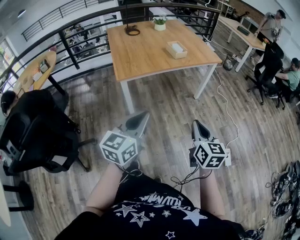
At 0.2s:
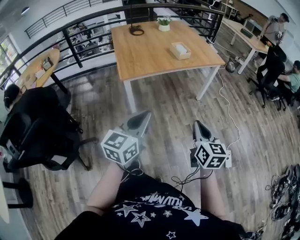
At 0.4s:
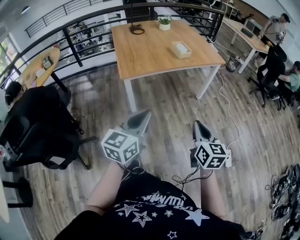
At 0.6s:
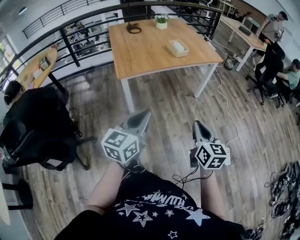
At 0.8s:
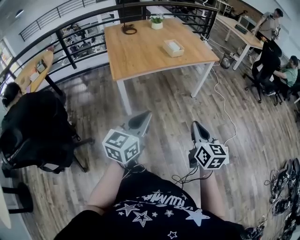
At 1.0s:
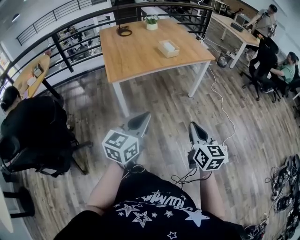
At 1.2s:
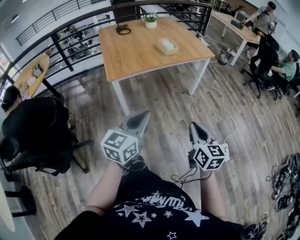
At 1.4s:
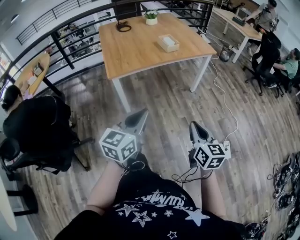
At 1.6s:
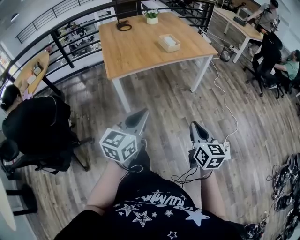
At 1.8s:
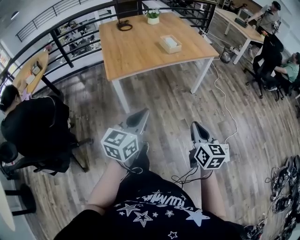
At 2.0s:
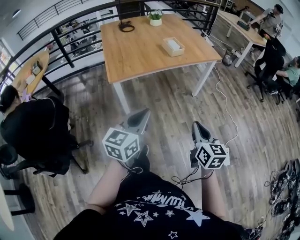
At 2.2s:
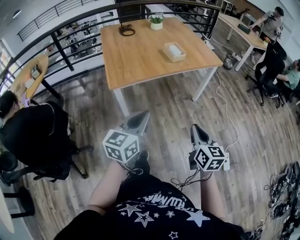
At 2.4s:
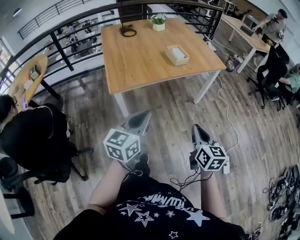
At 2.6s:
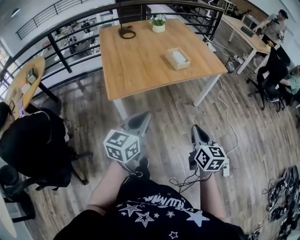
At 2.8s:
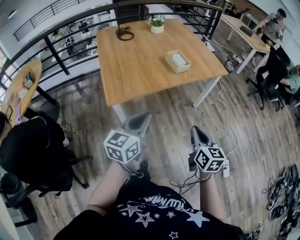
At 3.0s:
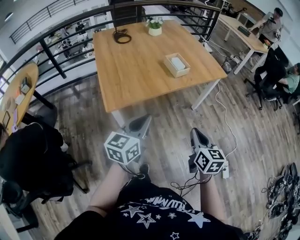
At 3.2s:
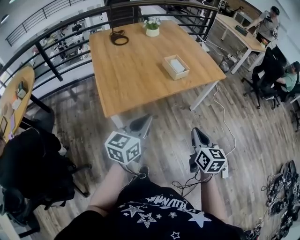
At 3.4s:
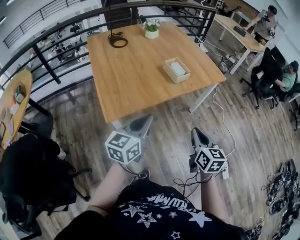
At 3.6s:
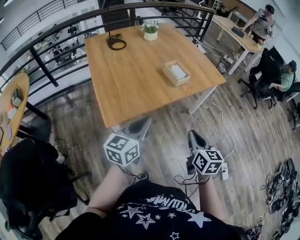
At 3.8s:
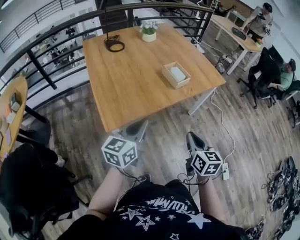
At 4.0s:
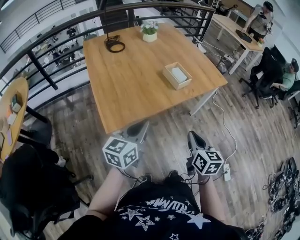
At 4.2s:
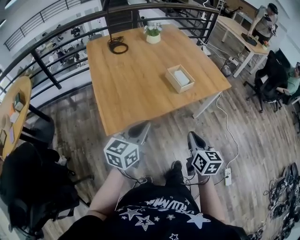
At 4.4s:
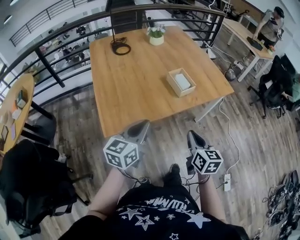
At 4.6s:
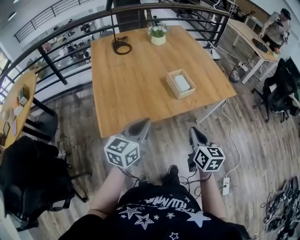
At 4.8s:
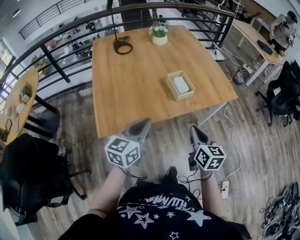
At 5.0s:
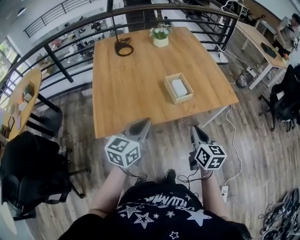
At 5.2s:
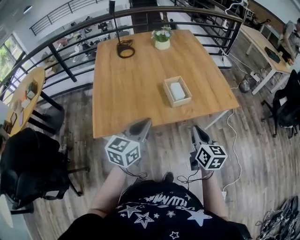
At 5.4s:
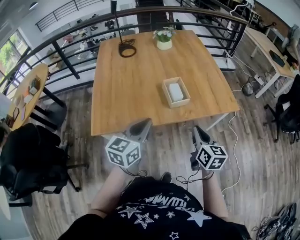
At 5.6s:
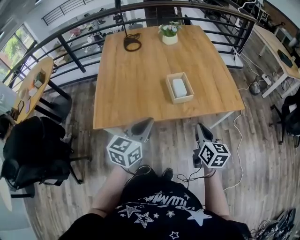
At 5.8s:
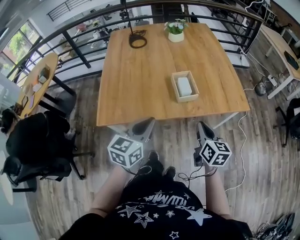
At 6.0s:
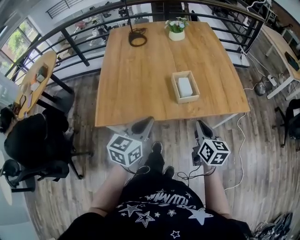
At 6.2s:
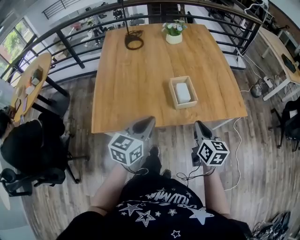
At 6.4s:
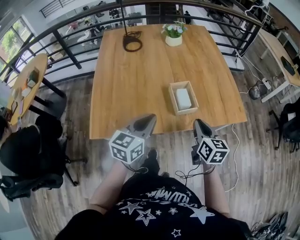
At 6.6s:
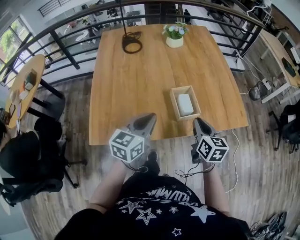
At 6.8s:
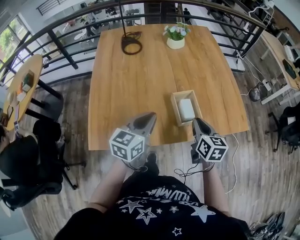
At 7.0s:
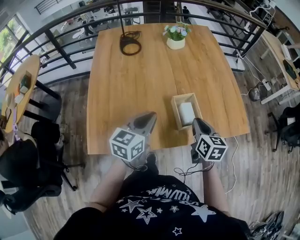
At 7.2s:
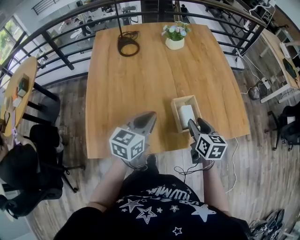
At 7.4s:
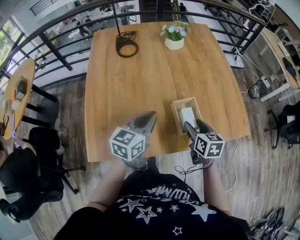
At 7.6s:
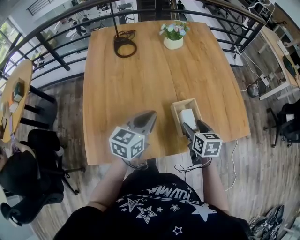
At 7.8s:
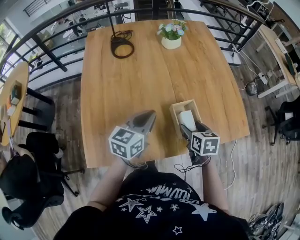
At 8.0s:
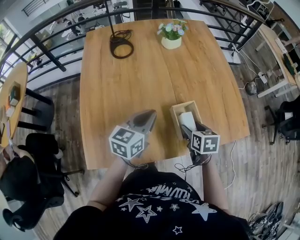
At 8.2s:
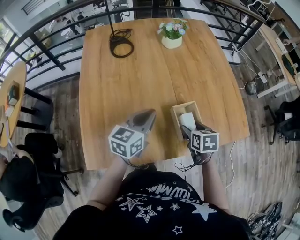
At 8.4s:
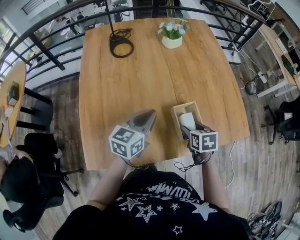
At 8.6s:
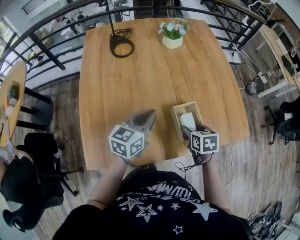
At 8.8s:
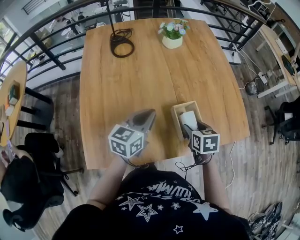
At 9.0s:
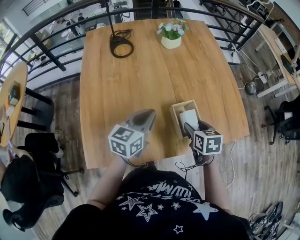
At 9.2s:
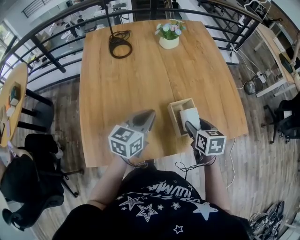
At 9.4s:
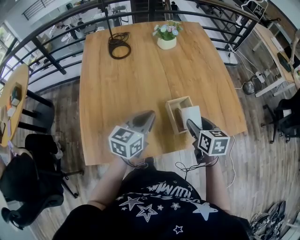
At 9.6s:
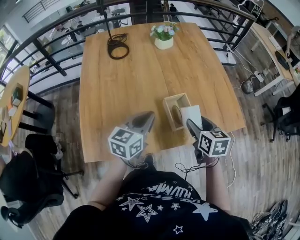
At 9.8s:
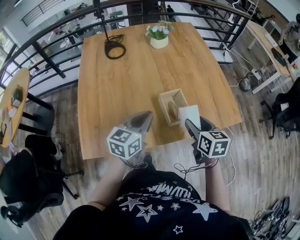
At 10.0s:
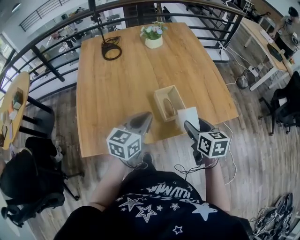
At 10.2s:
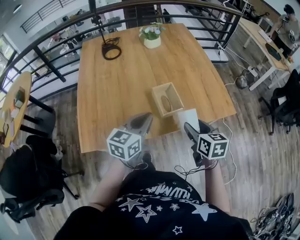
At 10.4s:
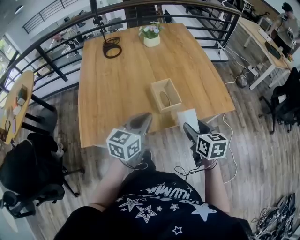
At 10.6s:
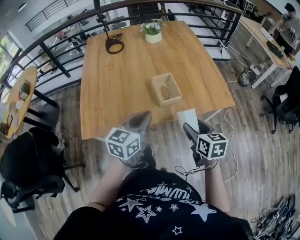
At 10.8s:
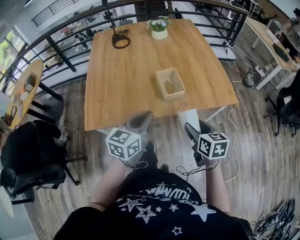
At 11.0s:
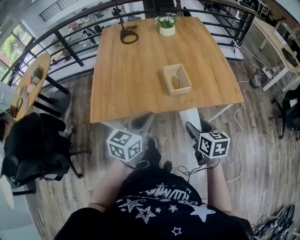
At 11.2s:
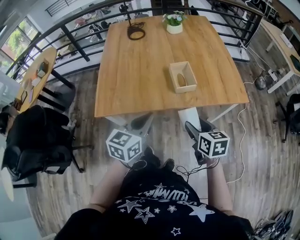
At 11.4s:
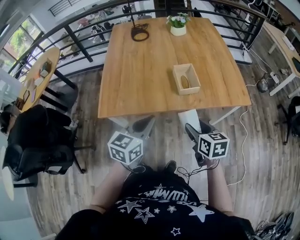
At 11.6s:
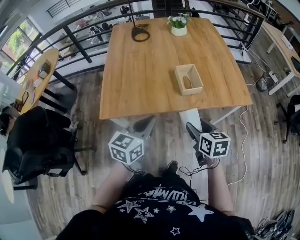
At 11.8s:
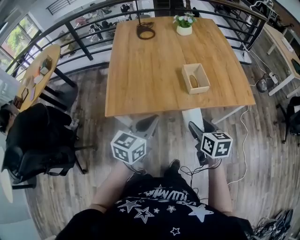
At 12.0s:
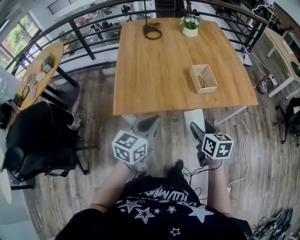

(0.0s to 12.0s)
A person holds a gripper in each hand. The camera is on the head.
0.0s - 1.6s: The left gripper ends up roughly 5 cm from where it was. The right gripper changes place by approximately 5 cm.
1.6s - 3.0s: Both grippers travel together forward, about 25 cm.
3.0s - 4.4s: The grippers both shift forward by approximately 15 cm.
4.4s - 6.0s: The left gripper is displaced to the right and forward by some 15 cm. The right gripper moves forward and to the right, some 20 cm.
6.0s - 7.6s: The grippers both shift forward by approximately 25 cm. The right gripper rotates about 20 degrees, and opens up.
7.6s - 9.0s: The grippers move only a little.
9.0s - 10.4s: The right gripper moves backward, to the right and upward, some 25 cm, while the left gripper goes roughly 20 cm backward and to the right.
10.4s - 12.0s: The right gripper moves to the left and backward, some 20 cm. The left gripper goes about 25 cm backward and to the left.

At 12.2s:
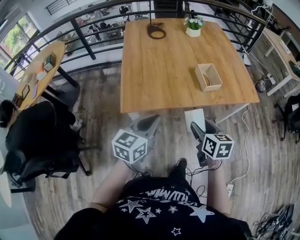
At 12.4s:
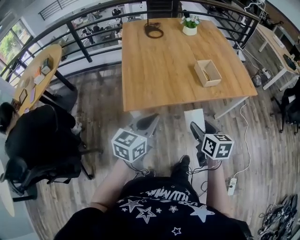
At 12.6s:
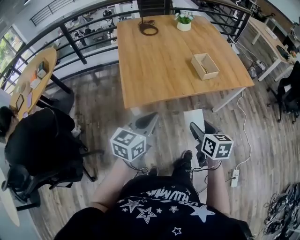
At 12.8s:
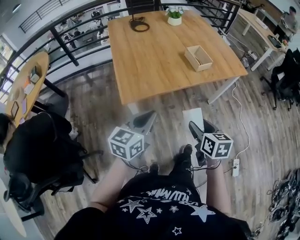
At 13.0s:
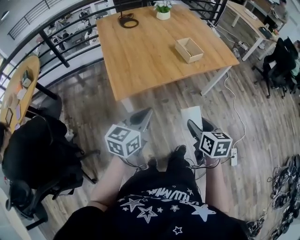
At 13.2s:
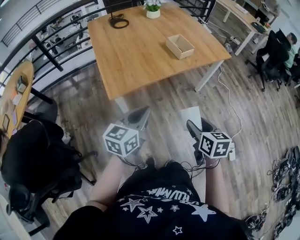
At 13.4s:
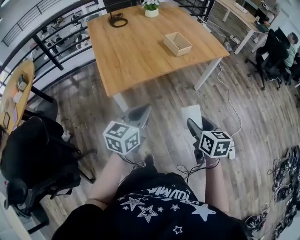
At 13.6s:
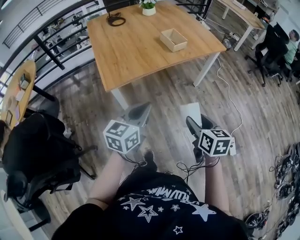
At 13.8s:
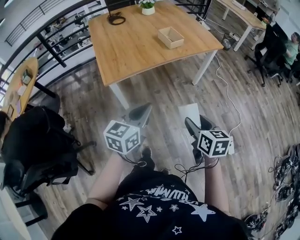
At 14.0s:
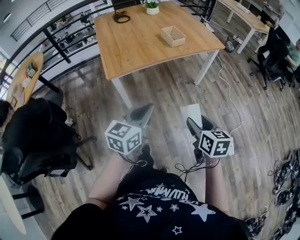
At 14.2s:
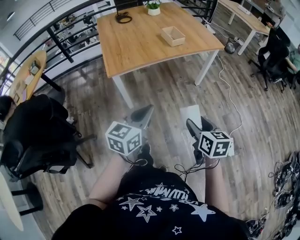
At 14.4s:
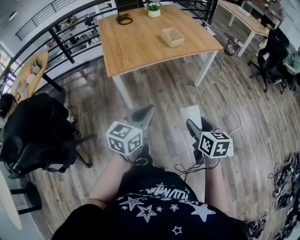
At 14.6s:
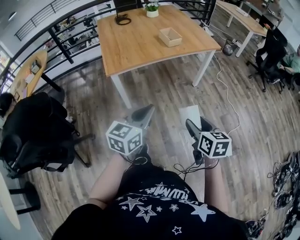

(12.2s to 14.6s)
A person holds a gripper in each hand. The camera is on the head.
12.2s - 13.4s: The right gripper travels backward by about 25 cm. Meanwhile the left gripper heads backward, covering approximately 15 cm.
13.4s - 14.6s: The two grippers go approximately 20 cm backward and to the right.

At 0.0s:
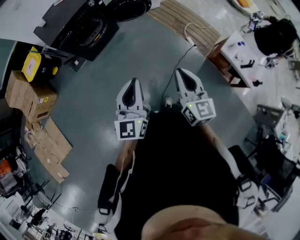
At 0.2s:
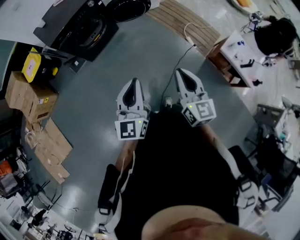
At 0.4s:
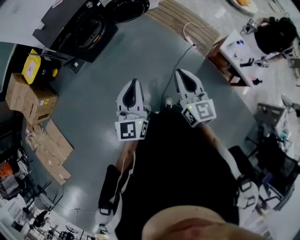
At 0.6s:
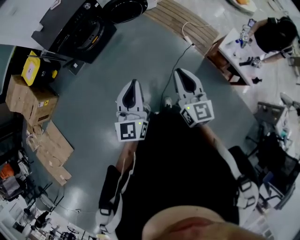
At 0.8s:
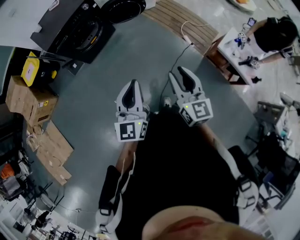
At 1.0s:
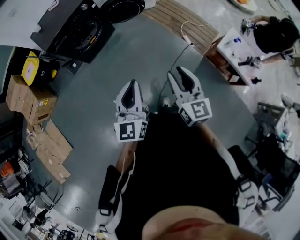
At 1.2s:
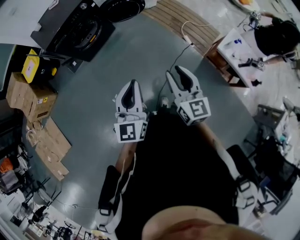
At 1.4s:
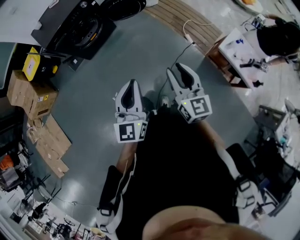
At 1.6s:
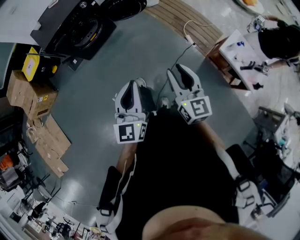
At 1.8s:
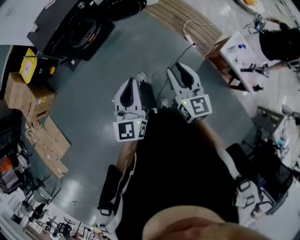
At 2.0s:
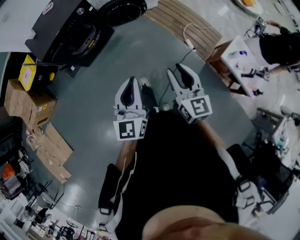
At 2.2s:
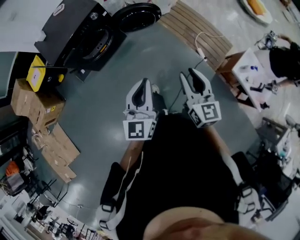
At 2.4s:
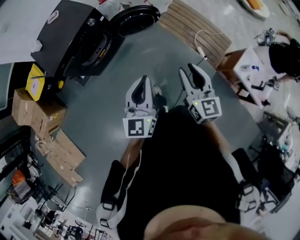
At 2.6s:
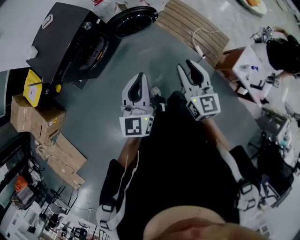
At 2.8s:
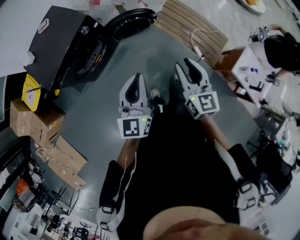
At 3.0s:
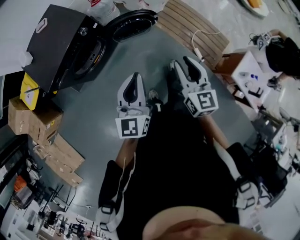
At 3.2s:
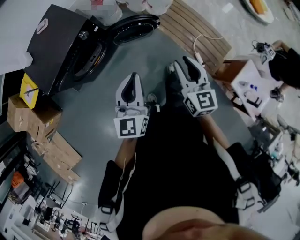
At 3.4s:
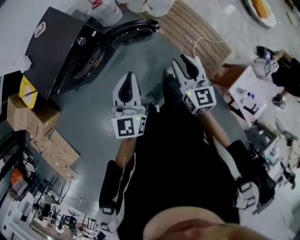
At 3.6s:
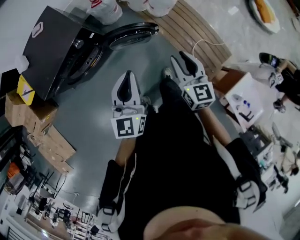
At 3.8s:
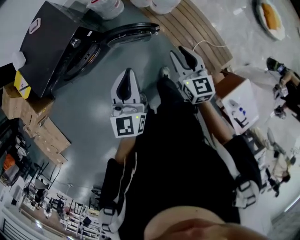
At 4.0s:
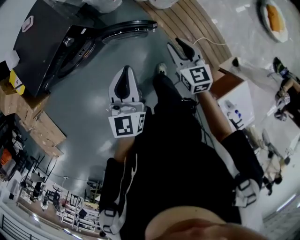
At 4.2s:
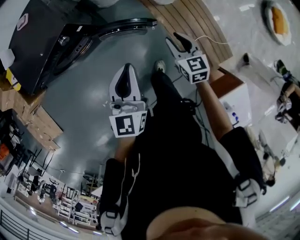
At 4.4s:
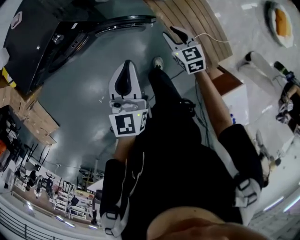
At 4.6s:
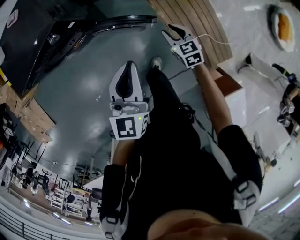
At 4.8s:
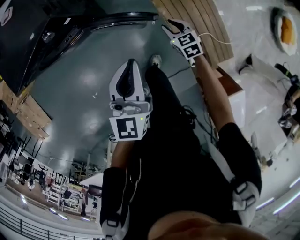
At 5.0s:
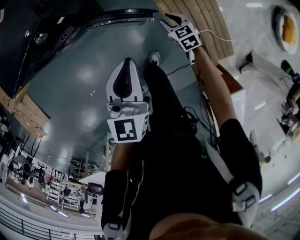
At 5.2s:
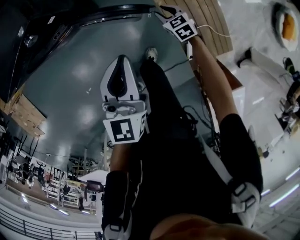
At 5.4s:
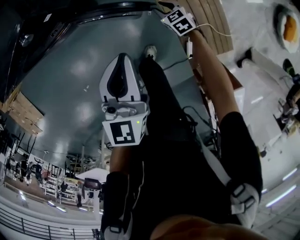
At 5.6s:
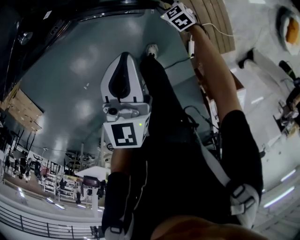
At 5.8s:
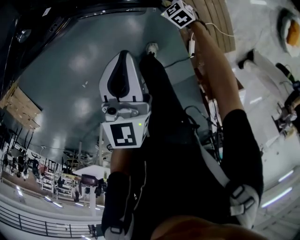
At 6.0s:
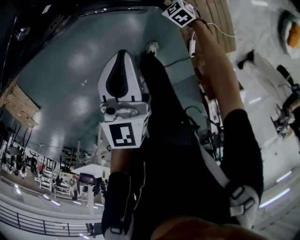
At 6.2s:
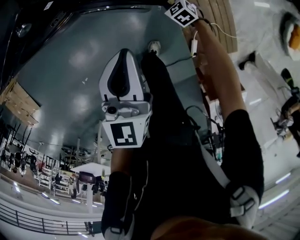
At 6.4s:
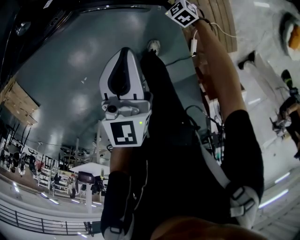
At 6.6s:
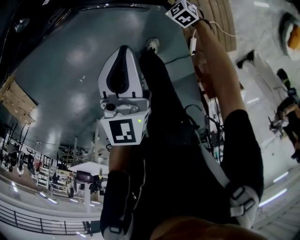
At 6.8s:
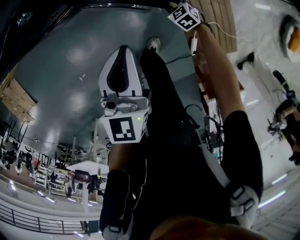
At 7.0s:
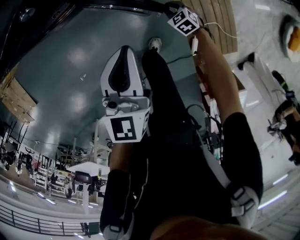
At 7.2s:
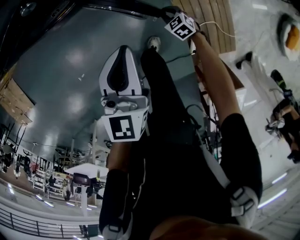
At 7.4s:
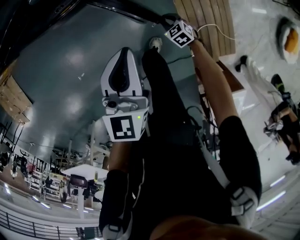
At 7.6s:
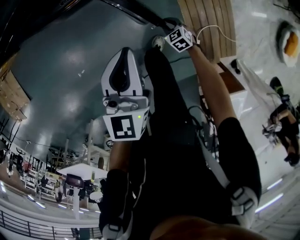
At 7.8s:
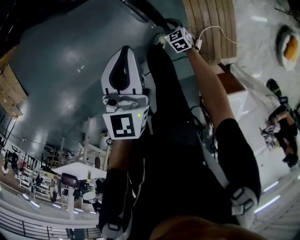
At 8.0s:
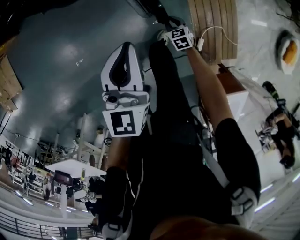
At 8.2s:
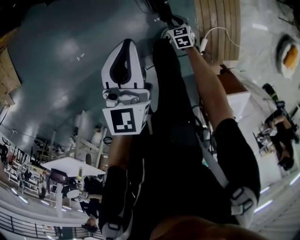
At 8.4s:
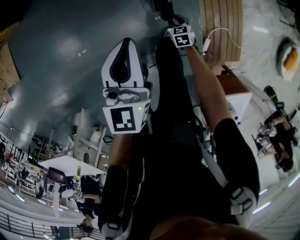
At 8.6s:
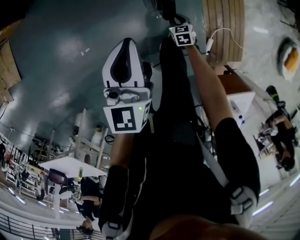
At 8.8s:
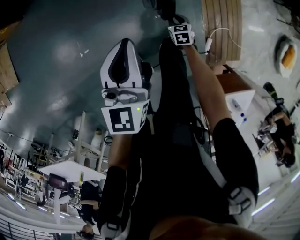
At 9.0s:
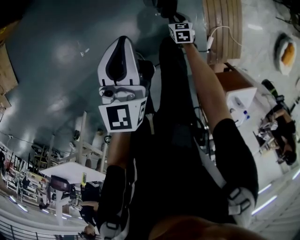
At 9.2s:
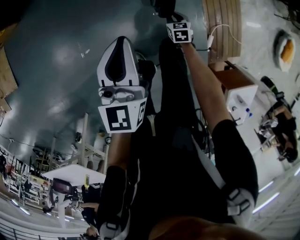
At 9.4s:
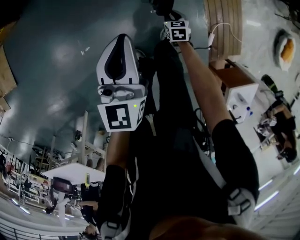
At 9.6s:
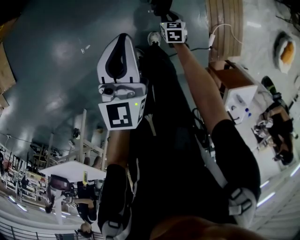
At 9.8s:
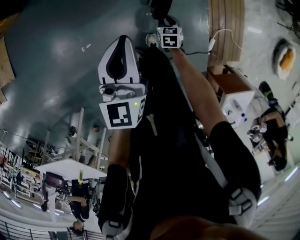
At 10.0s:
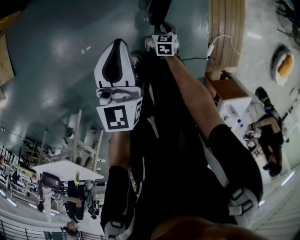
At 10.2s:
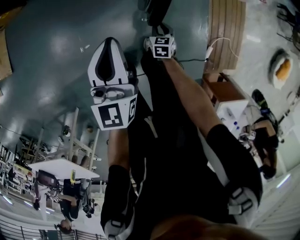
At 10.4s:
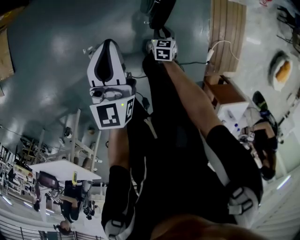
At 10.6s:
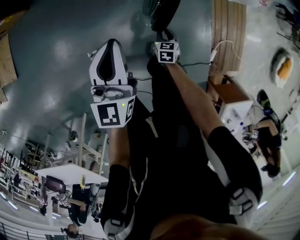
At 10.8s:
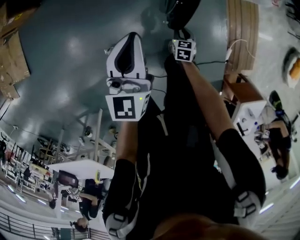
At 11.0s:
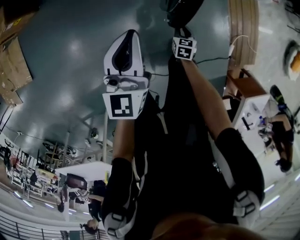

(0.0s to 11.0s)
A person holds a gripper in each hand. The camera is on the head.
0.0s - 1.6s: The two grippers go approximately 10 cm to the right. The right gripper opens.
1.6s - 3.2s: The pair of grippers is taken forward, about 50 cm.
3.2s - 4.8s: The left gripper shifts by some 30 cm, and changes its angle by roughly 20 degrees. Meanwhile the right gripper ends up approximately 50 cm from where it was, and points its fingers about 30 degrees further downward.
4.8s - 6.2s: The left gripper is displaced downward by some 10 cm. The right gripper travels downward by approximately 20 cm, and changes its angle by approximately 30 degrees.
6.2s - 7.8s: The left gripper shifts some 20 cm to the left and backward. The right gripper moves backward and to the left, about 25 cm.
7.8s - 9.4s: The left gripper is displaced to the left and backward by approximately 25 cm; the right gripper goes roughly 20 cm to the left, and rotates some 20 degrees.
9.4s - 11.0s: The right gripper travels to the left by some 15 cm. The left gripper heads to the left and forward, covering some 20 cm.
